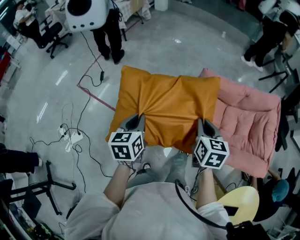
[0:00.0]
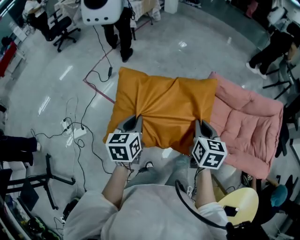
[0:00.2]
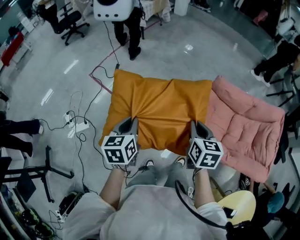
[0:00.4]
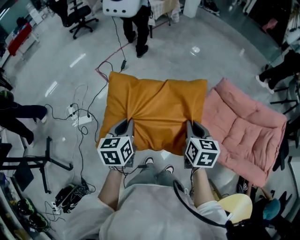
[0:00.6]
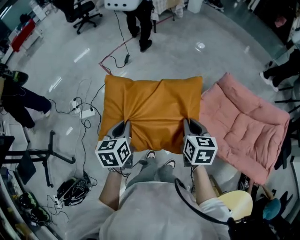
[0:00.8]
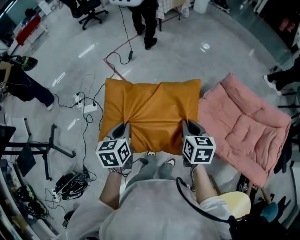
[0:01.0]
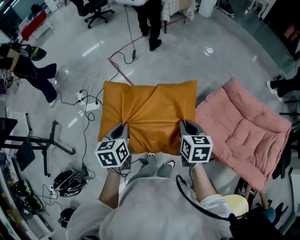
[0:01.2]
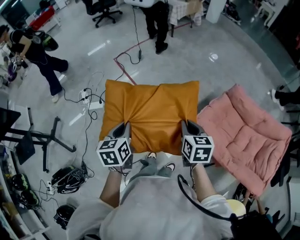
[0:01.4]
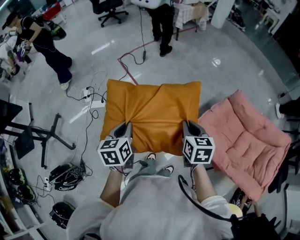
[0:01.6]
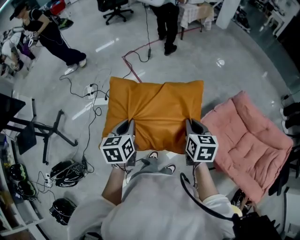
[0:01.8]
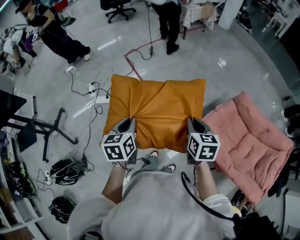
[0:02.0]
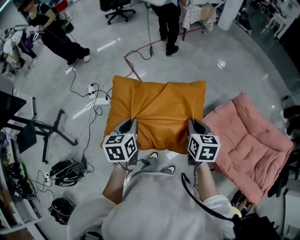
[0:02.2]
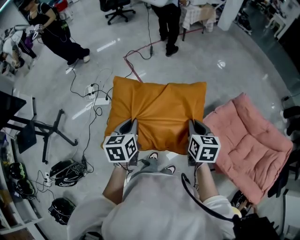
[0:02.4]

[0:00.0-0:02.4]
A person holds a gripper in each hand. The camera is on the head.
0:00.0 to 0:01.2: The right gripper shifts by some 20 cm, and swivels some 30 degrees; the left gripper changes place by some 25 cm, and rotates approximately 30 degrees.
0:01.2 to 0:02.4: The grippers stay close to where they were, moving slightly.

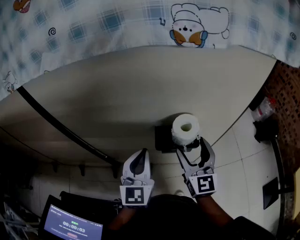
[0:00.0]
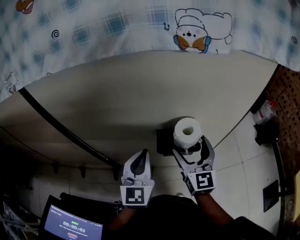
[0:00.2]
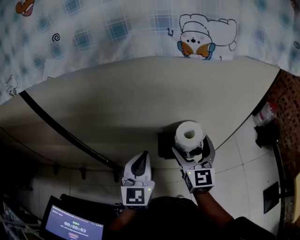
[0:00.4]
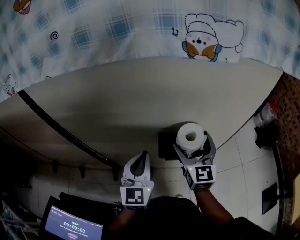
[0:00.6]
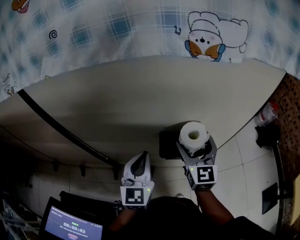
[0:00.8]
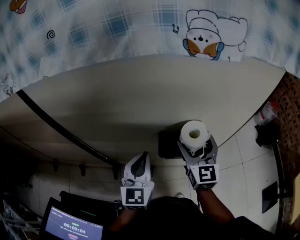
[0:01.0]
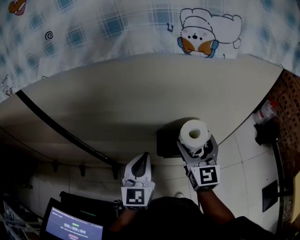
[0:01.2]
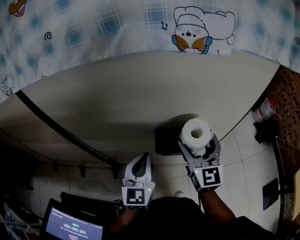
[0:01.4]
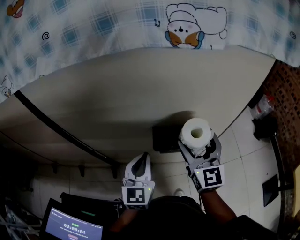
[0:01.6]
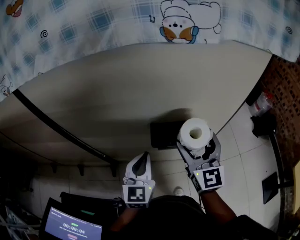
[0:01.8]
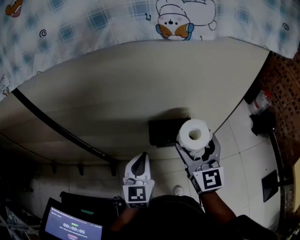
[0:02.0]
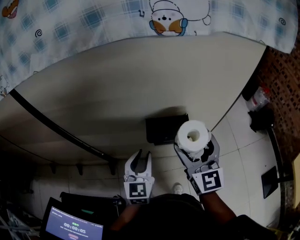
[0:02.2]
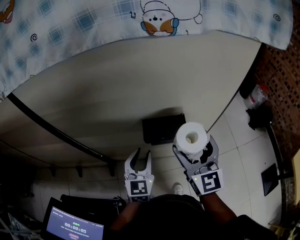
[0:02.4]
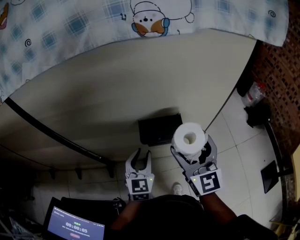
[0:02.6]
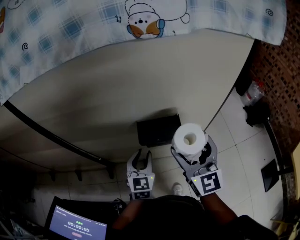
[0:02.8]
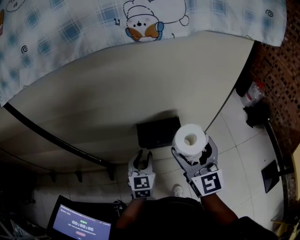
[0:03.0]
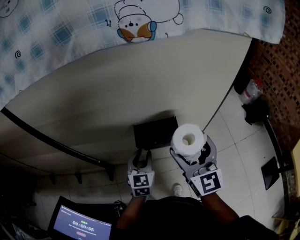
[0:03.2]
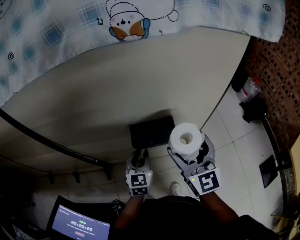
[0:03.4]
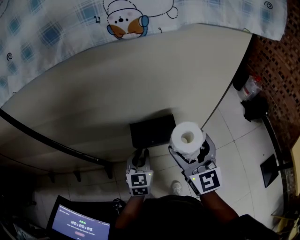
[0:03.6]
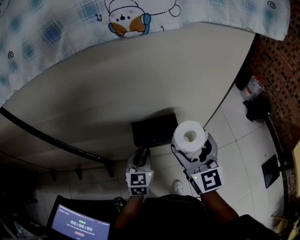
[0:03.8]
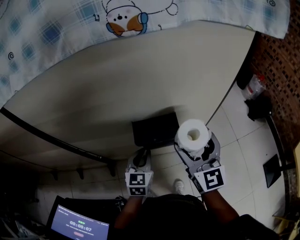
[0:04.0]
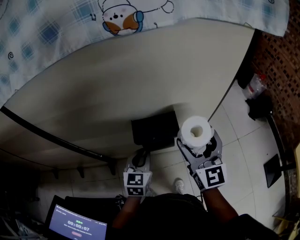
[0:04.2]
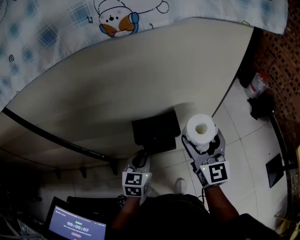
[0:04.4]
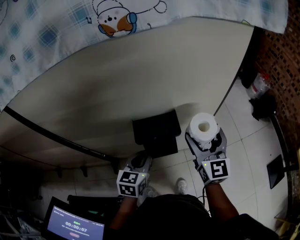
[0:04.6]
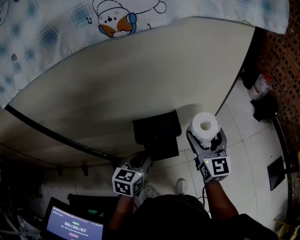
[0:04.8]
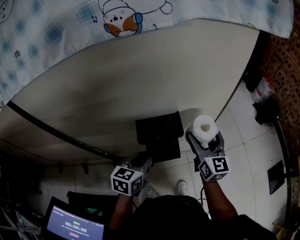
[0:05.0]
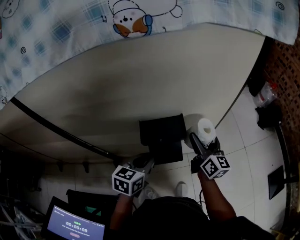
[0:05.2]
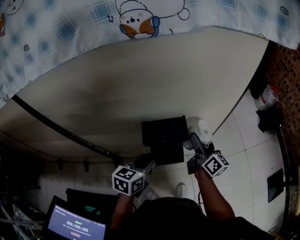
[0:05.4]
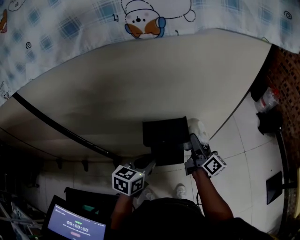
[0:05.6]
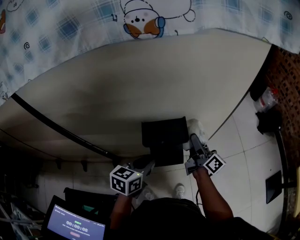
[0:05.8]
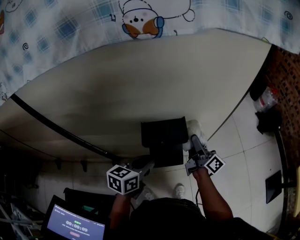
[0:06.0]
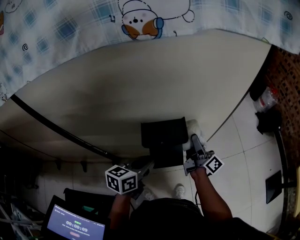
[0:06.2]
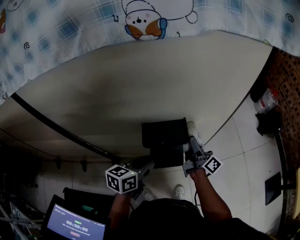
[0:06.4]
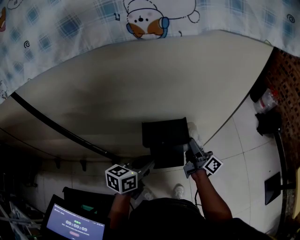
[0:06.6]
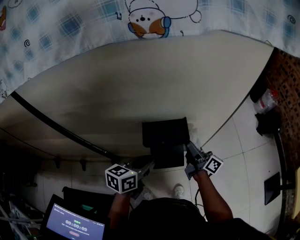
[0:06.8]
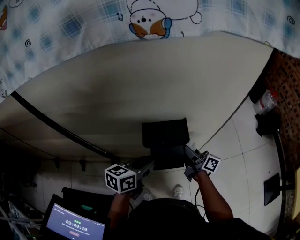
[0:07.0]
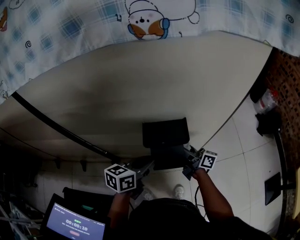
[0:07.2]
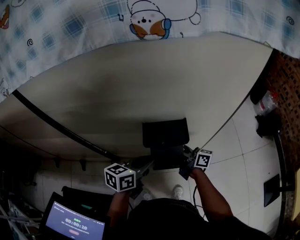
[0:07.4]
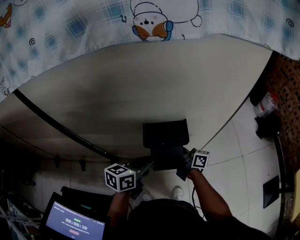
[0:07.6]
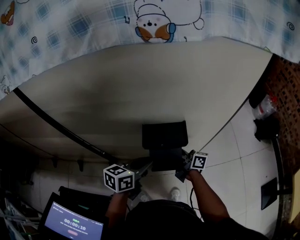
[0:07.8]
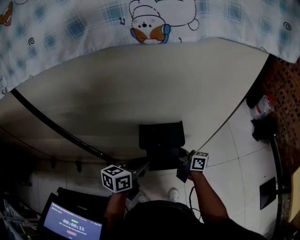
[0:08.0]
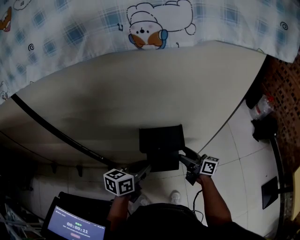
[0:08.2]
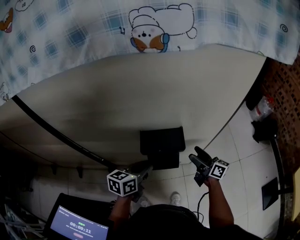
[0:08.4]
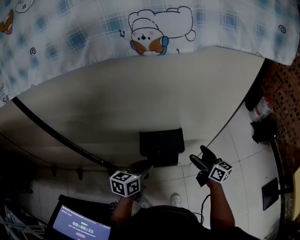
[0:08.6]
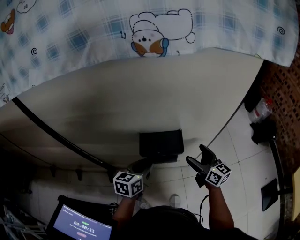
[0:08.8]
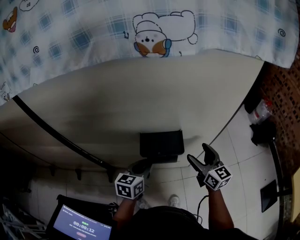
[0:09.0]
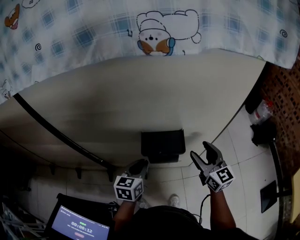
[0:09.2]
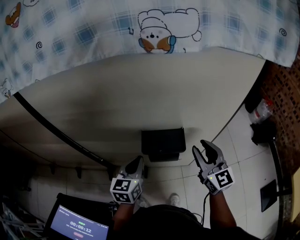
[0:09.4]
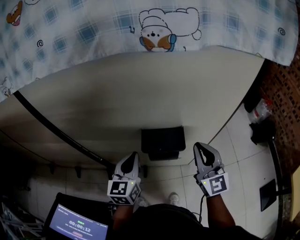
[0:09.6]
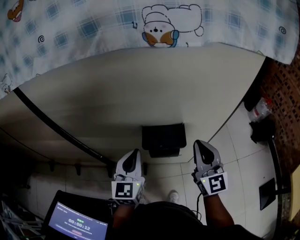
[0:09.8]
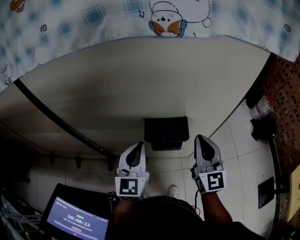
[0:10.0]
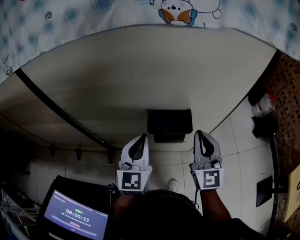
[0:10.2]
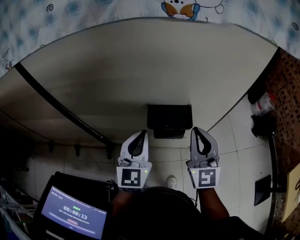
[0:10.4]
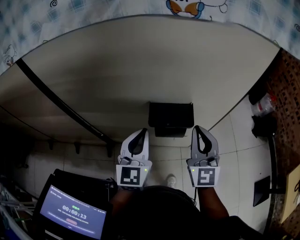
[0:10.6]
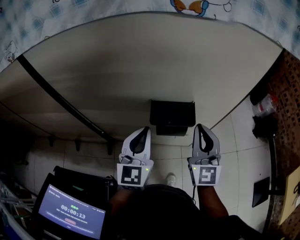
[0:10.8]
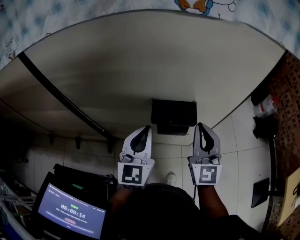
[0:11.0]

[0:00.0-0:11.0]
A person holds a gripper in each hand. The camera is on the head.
0:00.0 to 0:01.6: The grippers stay close to where they were, moving slightly.
0:01.6 to 0:03.2: The left gripper travels downward by approximately 10 cm, and opens its fingers; the right gripper ends up approximately 5 cm from where it was.
0:03.2 to 0:04.8: The left gripper shifts by approximately 5 cm, and turns by approximately 20 degrees. Meanwhile the right gripper is displaced to the right and downward by approximately 10 cm.
0:04.8 to 0:06.2: The right gripper travels downward by roughly 10 cm, and rotates around the line of its fingers by about 60 degrees, clockwise from behind.
0:06.2 to 0:07.8: The right gripper goes approximately 10 cm to the left, and swivels roughly 40 degrees.
0:07.8 to 0:09.4: The right gripper is displaced upward and to the right by approximately 20 cm, rotates around the line of its fingers by about 60 degrees, counterclockwise from behind, and closes. The left gripper ends up about 5 cm from where it was, and changes its angle by approximately 30 degrees.
0:09.4 to 0:11.0: The left gripper heads upward, covering about 10 cm, and turns by about 20 degrees. Meanwhile the right gripper is displaced to the left by approximately 5 cm.

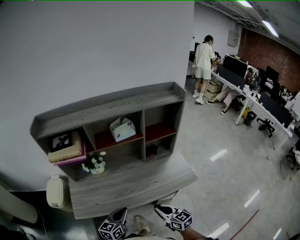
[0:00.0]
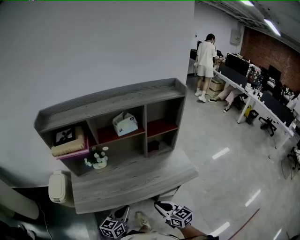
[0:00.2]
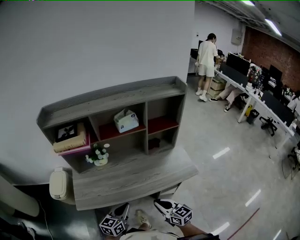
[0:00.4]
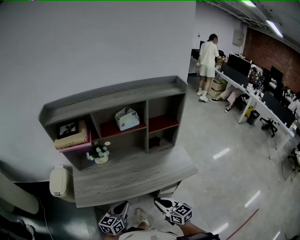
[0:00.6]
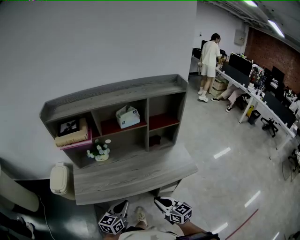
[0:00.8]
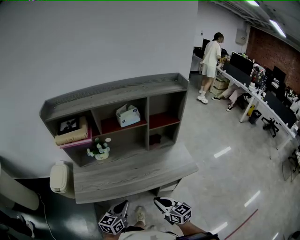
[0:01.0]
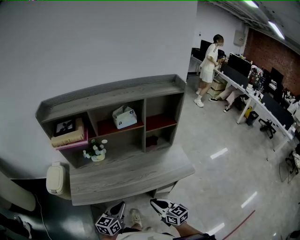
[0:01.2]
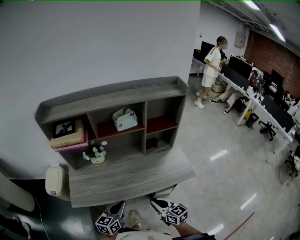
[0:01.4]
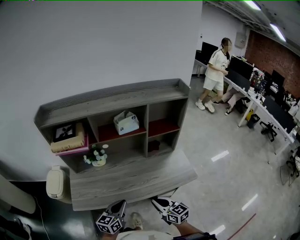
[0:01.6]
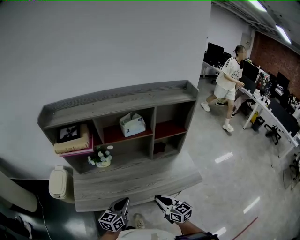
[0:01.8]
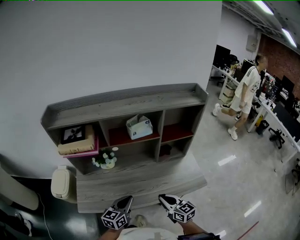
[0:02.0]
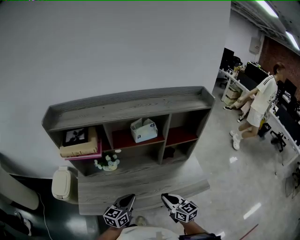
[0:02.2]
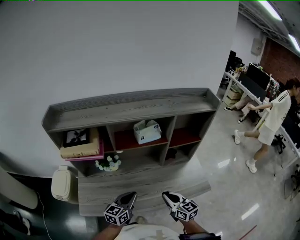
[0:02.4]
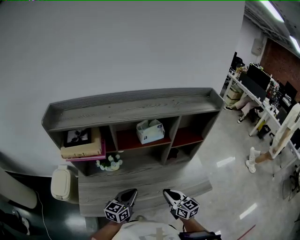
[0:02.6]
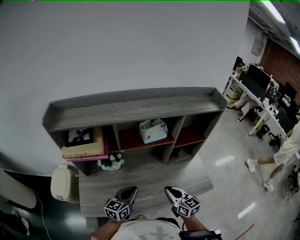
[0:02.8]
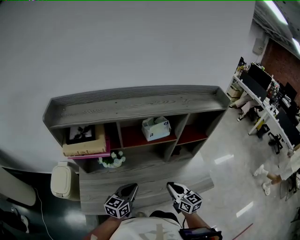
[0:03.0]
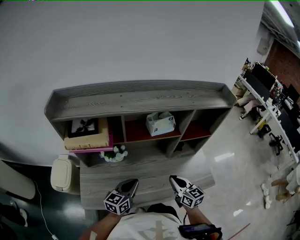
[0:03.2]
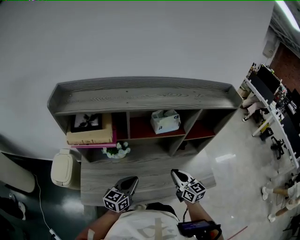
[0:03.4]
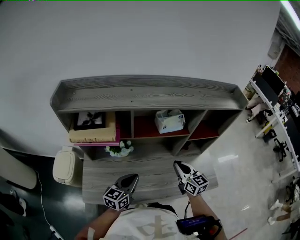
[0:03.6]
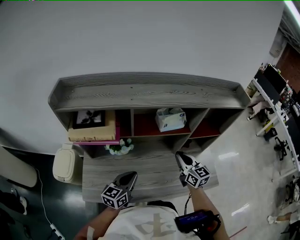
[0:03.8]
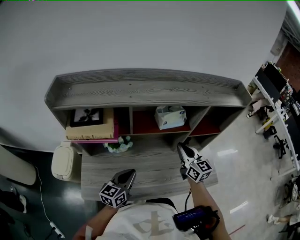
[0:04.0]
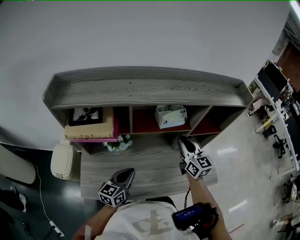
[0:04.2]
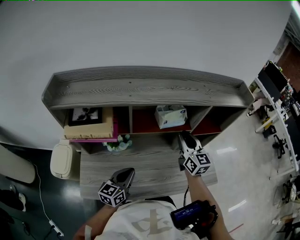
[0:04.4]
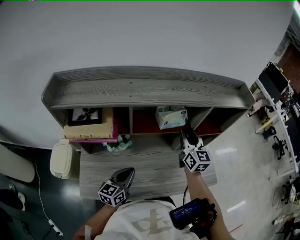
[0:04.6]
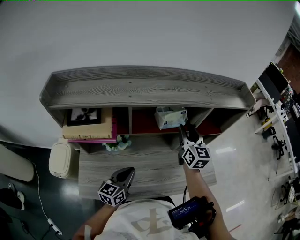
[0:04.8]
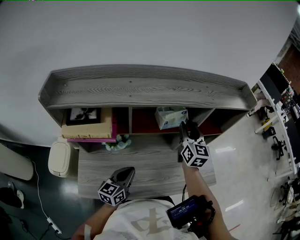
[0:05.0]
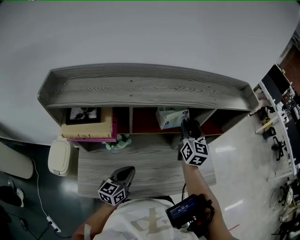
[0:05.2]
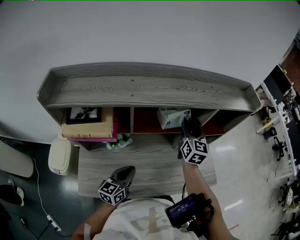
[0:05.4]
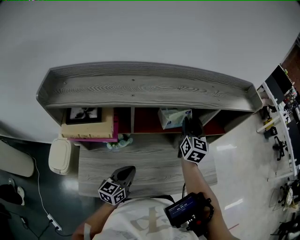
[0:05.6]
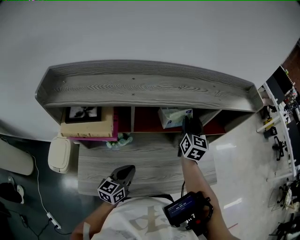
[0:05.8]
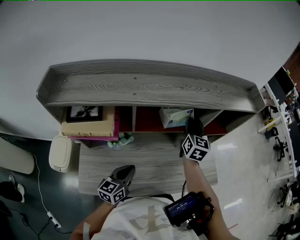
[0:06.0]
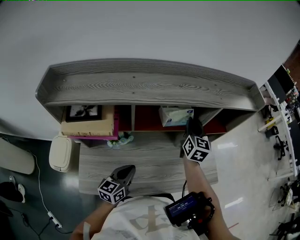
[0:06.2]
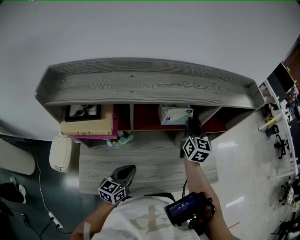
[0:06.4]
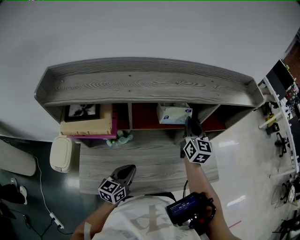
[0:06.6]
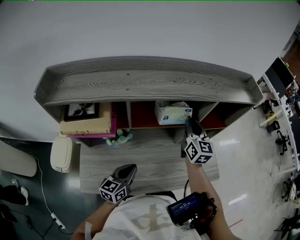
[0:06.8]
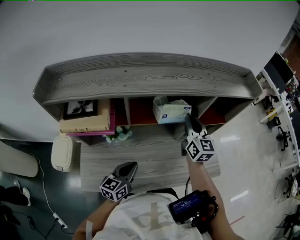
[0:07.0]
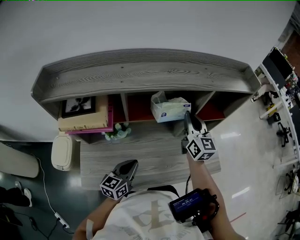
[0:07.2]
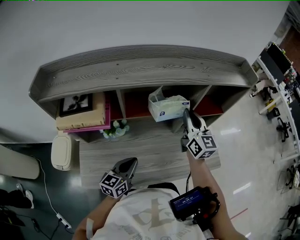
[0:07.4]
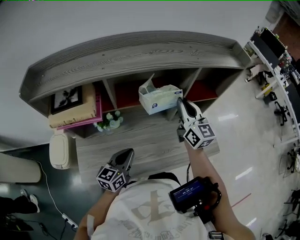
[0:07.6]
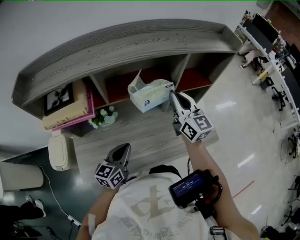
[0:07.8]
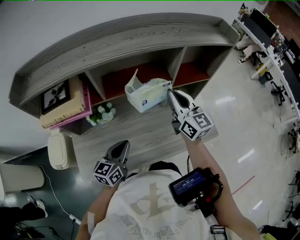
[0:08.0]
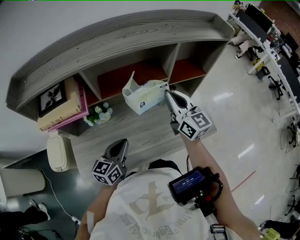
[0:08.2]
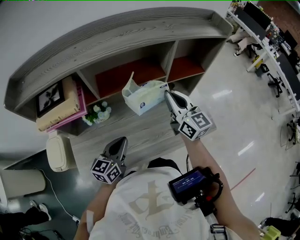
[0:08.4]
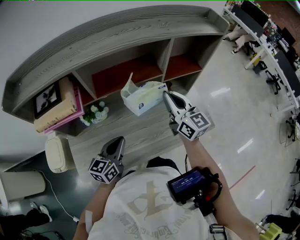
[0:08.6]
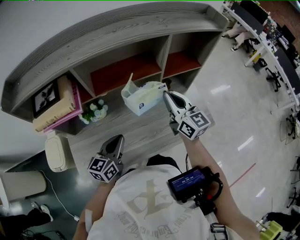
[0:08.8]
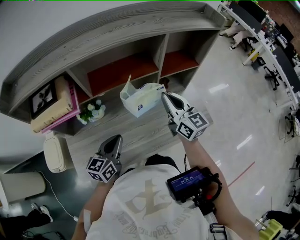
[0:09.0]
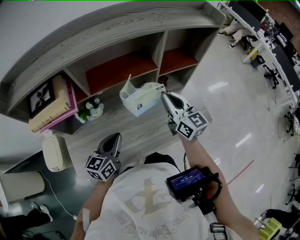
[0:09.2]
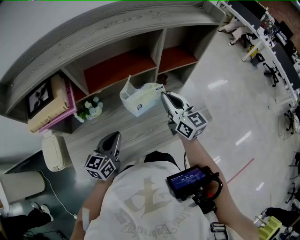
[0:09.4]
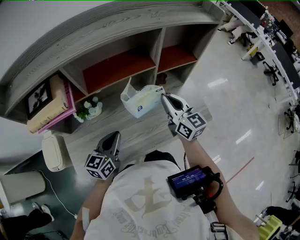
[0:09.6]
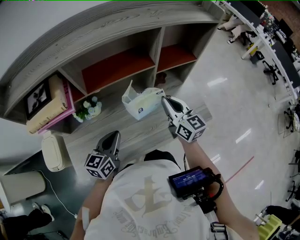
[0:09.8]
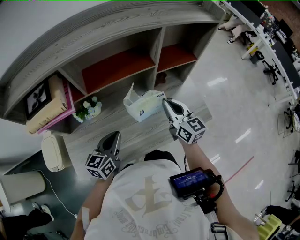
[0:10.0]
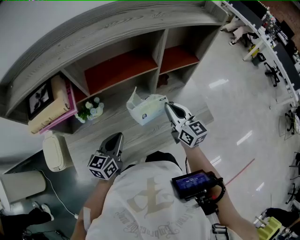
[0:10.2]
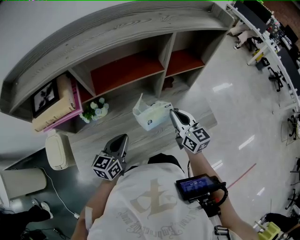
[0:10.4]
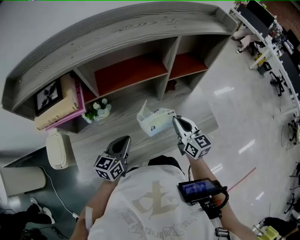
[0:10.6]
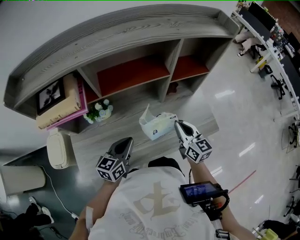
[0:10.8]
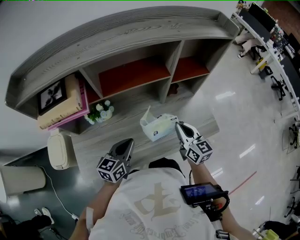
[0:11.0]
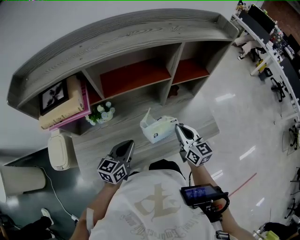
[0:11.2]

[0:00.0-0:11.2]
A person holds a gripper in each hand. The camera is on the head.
0:00.0 to 0:01.6: There are only small adjustments of the grippers.
0:01.6 to 0:03.2: The two grippers go some 20 cm forward.
0:03.2 to 0:04.8: The right gripper travels forward and upward by approximately 25 cm, changes its angle by some 20 degrees, and opens its fingers.
0:04.8 to 0:06.4: The right gripper closes up.
0:06.4 to 0:08.0: The right gripper moves backward, some 10 cm, and swivels some 20 degrees.
0:08.0 to 0:09.6: The right gripper travels downward by approximately 10 cm.
0:09.6 to 0:11.2: The right gripper travels downward and backward by some 10 cm.
